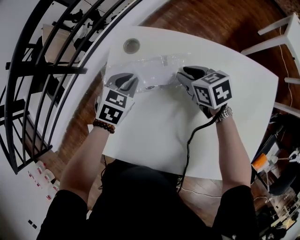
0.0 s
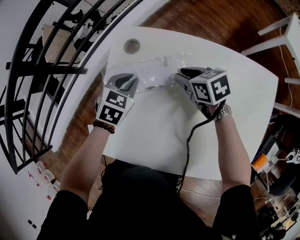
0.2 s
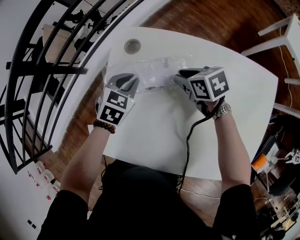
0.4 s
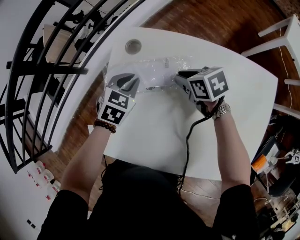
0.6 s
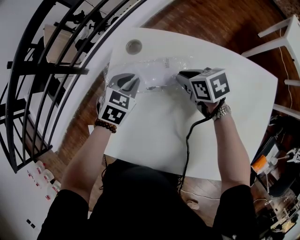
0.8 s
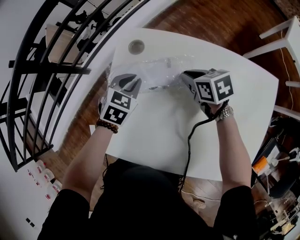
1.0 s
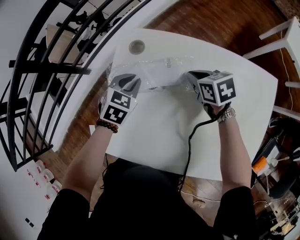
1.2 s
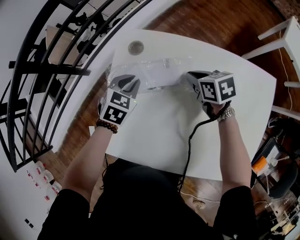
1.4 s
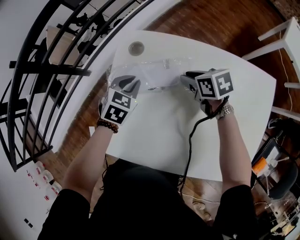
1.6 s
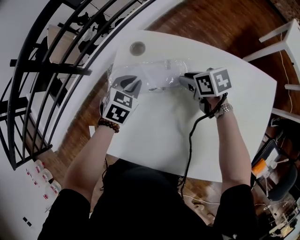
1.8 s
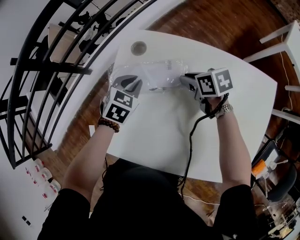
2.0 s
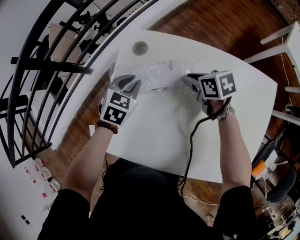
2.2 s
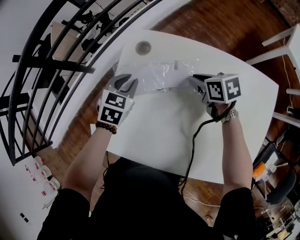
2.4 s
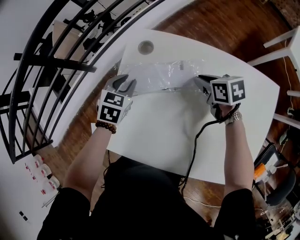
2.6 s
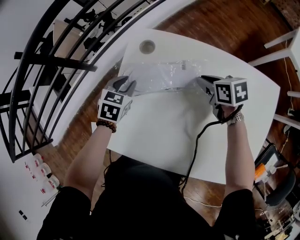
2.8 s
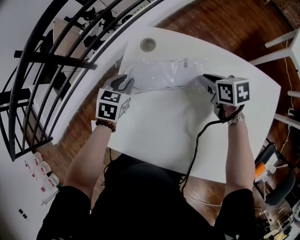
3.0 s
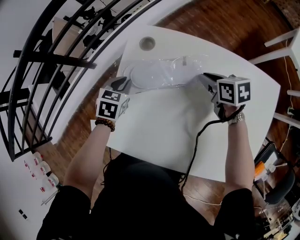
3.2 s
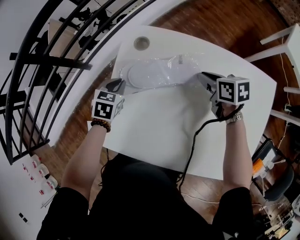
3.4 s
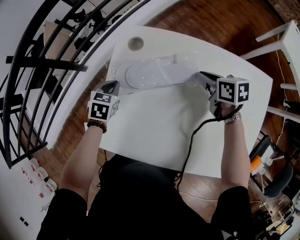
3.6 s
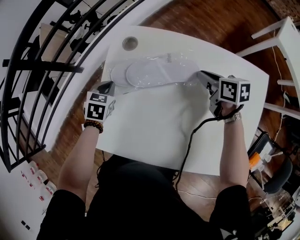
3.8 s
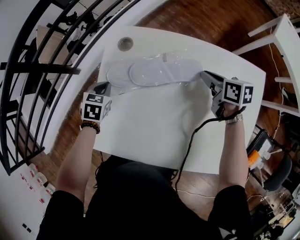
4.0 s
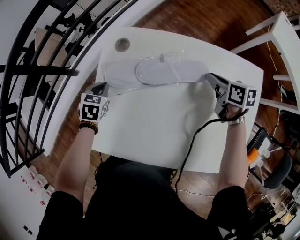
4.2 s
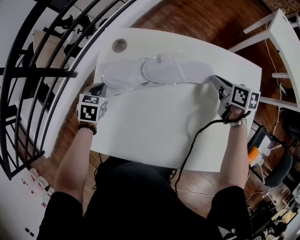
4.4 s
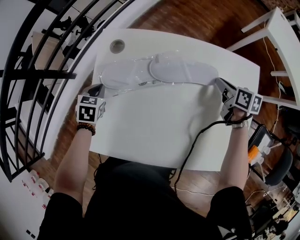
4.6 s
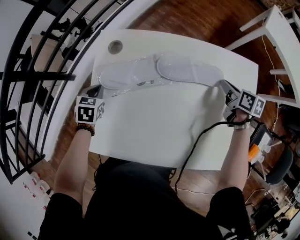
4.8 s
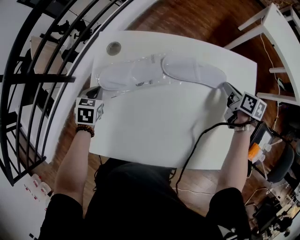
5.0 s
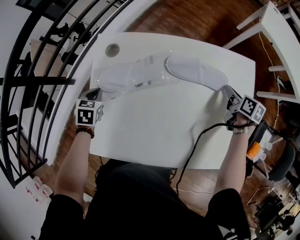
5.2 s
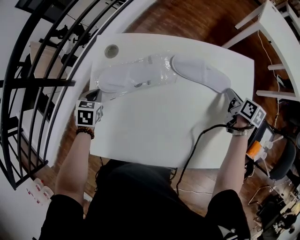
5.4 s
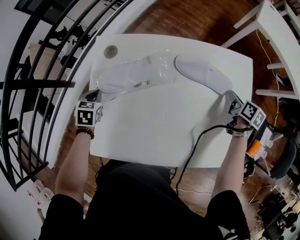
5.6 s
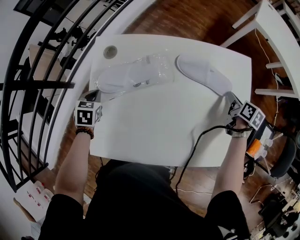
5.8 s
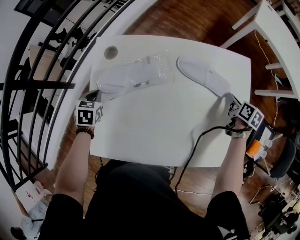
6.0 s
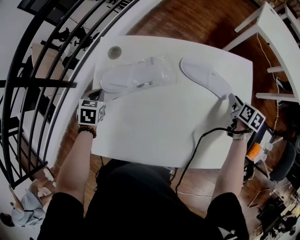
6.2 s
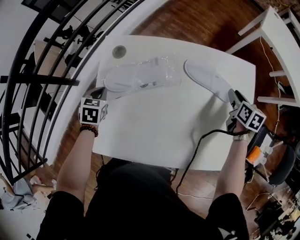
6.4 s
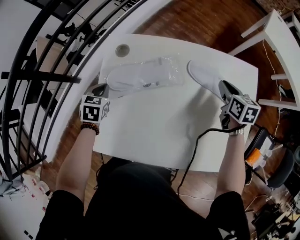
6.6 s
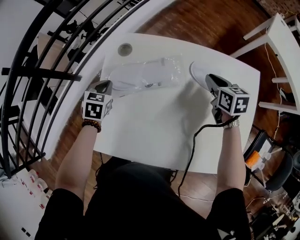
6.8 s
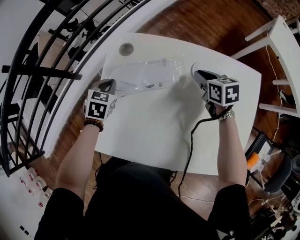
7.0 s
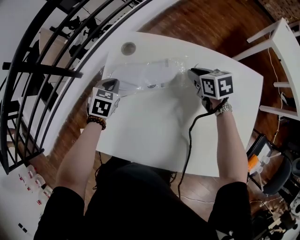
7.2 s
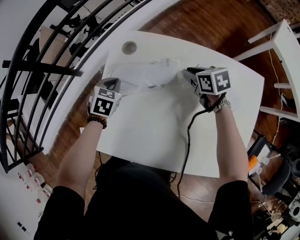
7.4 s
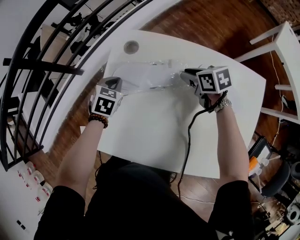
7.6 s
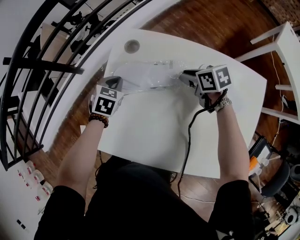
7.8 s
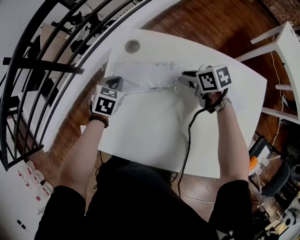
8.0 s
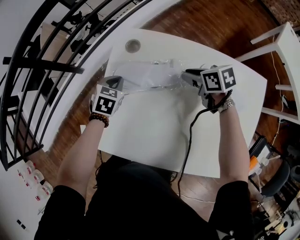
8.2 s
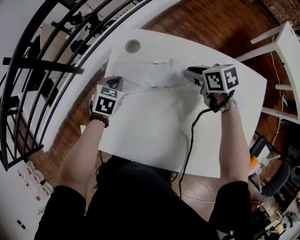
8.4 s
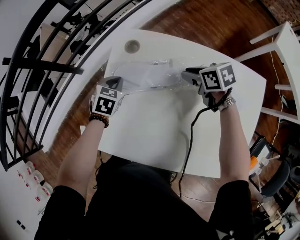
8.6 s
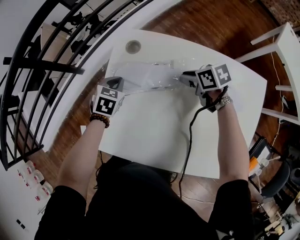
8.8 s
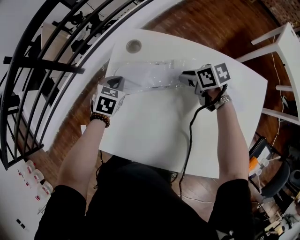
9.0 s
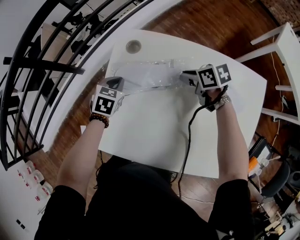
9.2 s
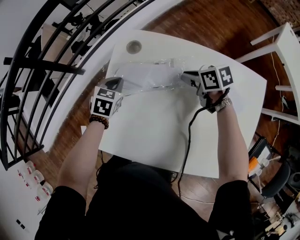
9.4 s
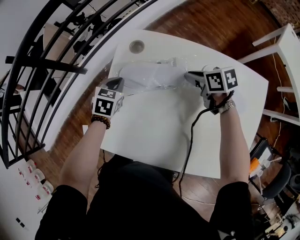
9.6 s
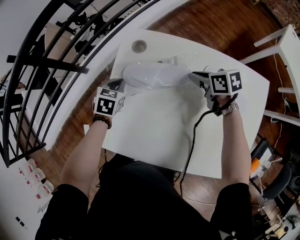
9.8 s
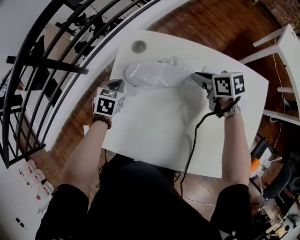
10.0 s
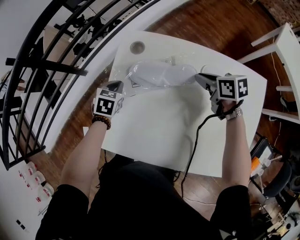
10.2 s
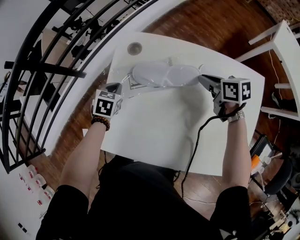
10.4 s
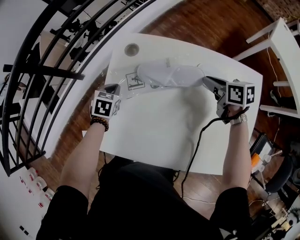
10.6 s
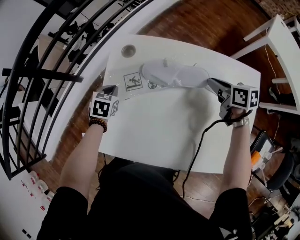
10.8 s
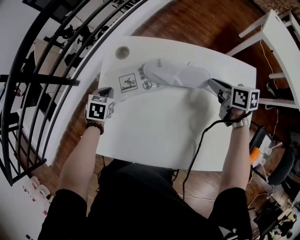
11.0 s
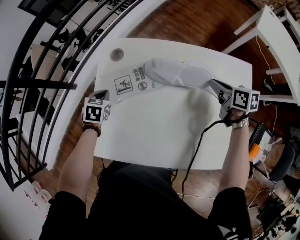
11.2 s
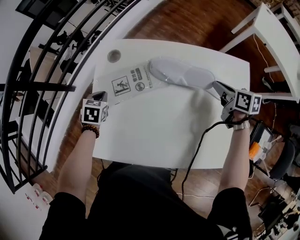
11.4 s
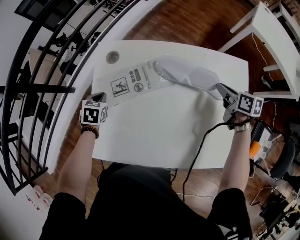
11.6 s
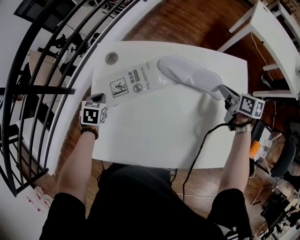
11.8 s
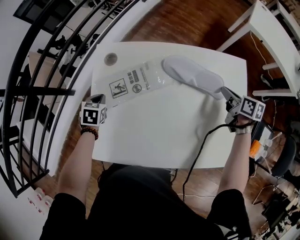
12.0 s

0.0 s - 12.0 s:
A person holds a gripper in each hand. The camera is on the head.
0.0 s - 1.6 s: The right gripper closes and opens again.
1.6 s - 3.0 s: The left gripper is displaced to the left by some 5 cm.
3.0 s - 4.4 s: The left gripper closes, while the right gripper moves to the right and backward, about 15 cm, and rotates approximately 20 degrees.
4.4 s - 6.0 s: The right gripper shifts roughly 20 cm to the right and backward, and rotates some 30 degrees.
6.0 s - 7.6 s: The right gripper ends up some 35 cm from where it was, and changes its angle by some 60 degrees.
7.6 s - 9.0 s: There are only small adjustments of the grippers.
9.0 s - 10.4 s: The right gripper is displaced to the right by roughly 5 cm.
10.4 s - 12.0 s: The right gripper is displaced to the right and backward by some 20 cm, and swivels about 30 degrees.

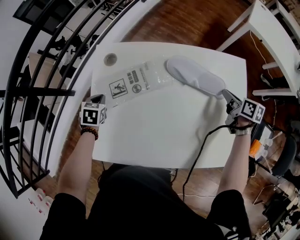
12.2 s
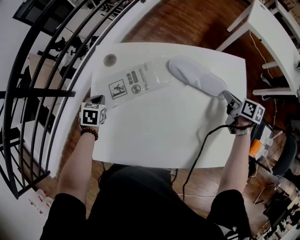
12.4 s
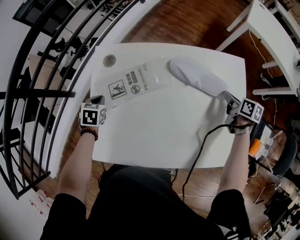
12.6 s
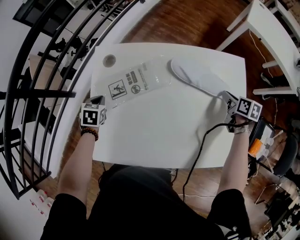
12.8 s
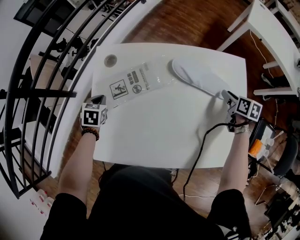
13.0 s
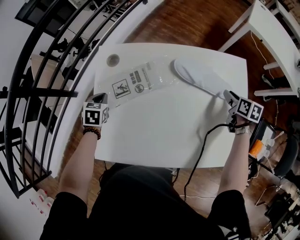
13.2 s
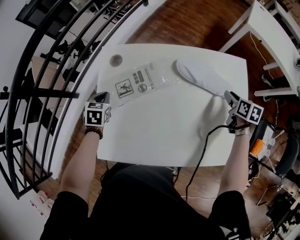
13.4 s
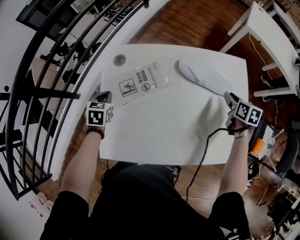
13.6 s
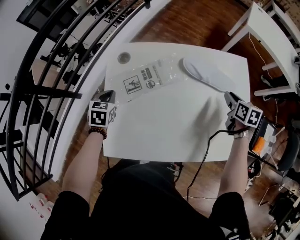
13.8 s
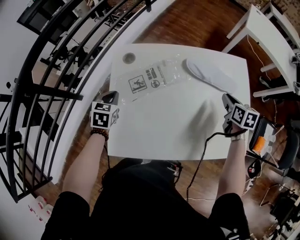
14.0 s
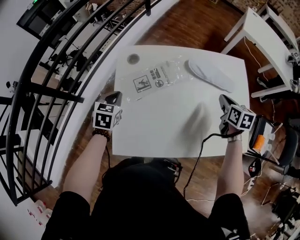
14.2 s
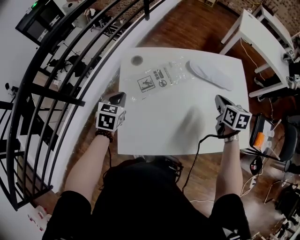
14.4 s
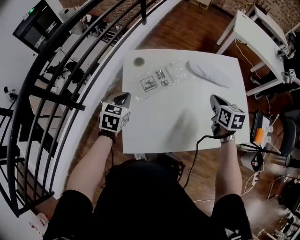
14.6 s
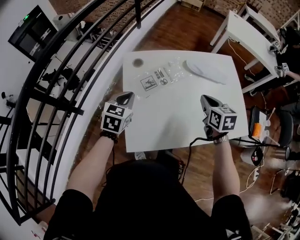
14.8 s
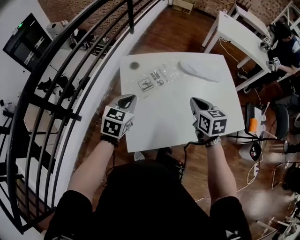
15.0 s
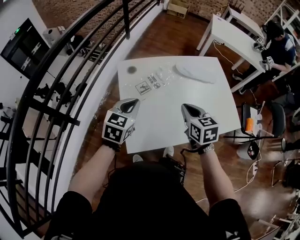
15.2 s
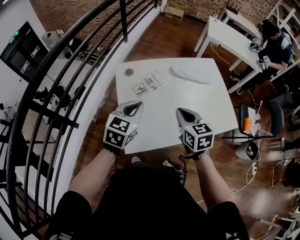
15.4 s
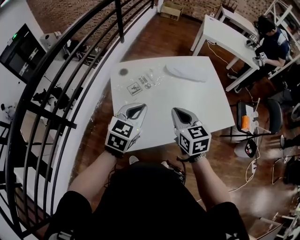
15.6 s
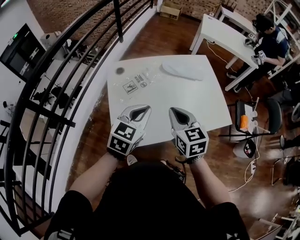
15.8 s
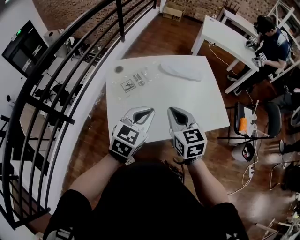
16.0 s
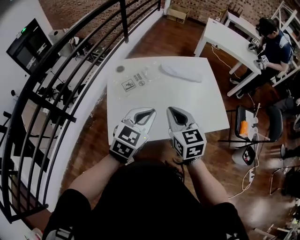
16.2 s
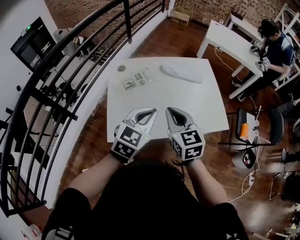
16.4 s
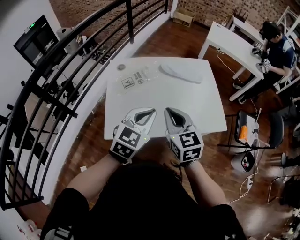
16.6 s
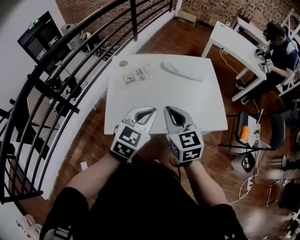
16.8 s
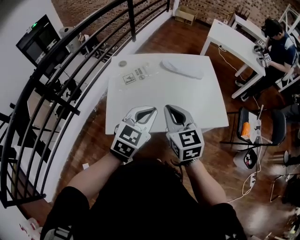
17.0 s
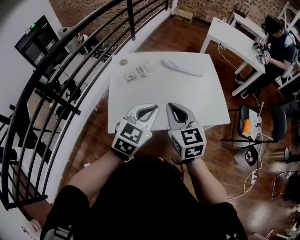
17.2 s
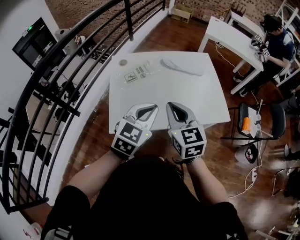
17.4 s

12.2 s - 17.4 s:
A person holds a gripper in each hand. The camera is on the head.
12.2 s - 14.0 s: The left gripper moves upward, about 5 cm. Meanwhile the right gripper shifts about 10 cm to the left and backward, and swivels some 20 degrees.
14.0 s - 15.6 s: The left gripper shifts about 25 cm upward, backward and to the right, and swivels approximately 40 degrees. The right gripper travels backward, to the left and upward by about 40 cm, and rotates some 20 degrees.
15.6 s - 17.4 s: The left gripper is displaced to the right and backward by approximately 15 cm; the right gripper moves backward and upward, some 10 cm.

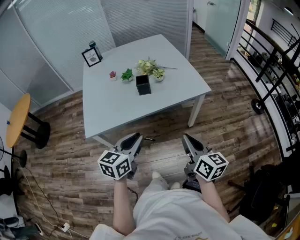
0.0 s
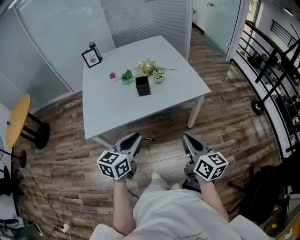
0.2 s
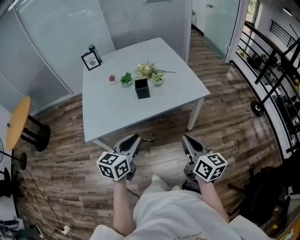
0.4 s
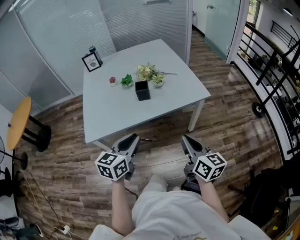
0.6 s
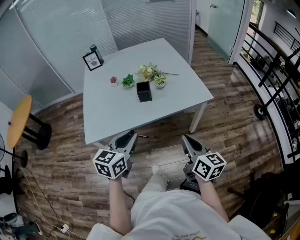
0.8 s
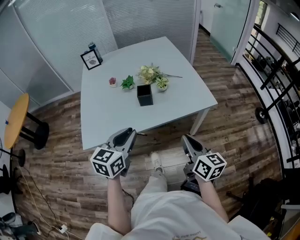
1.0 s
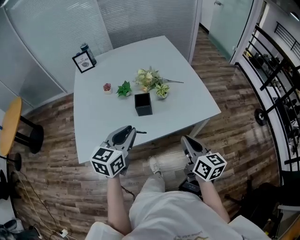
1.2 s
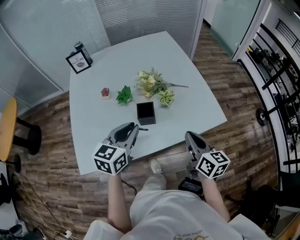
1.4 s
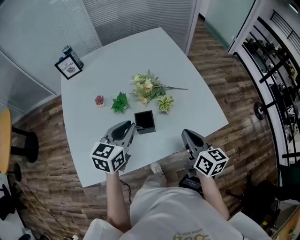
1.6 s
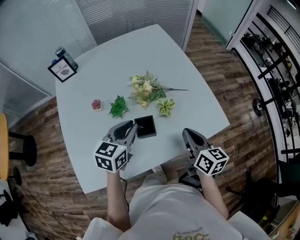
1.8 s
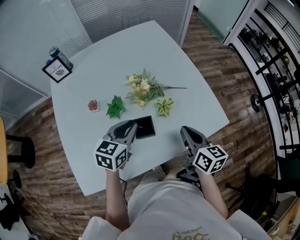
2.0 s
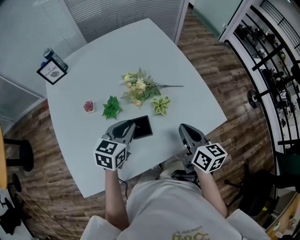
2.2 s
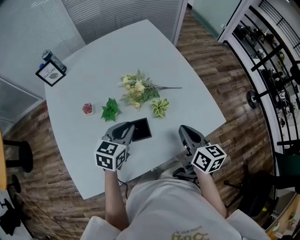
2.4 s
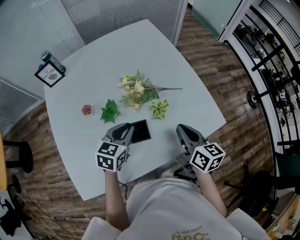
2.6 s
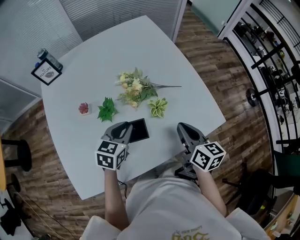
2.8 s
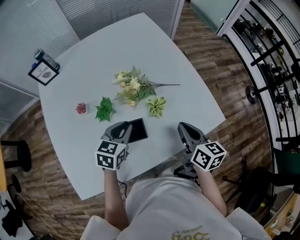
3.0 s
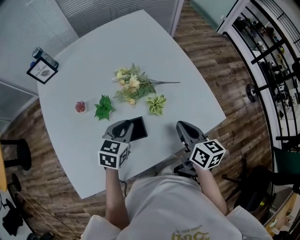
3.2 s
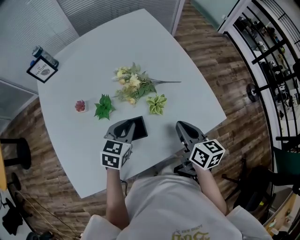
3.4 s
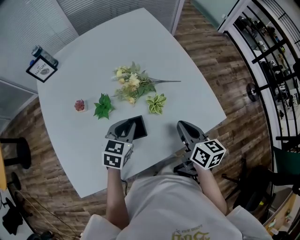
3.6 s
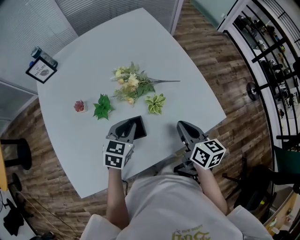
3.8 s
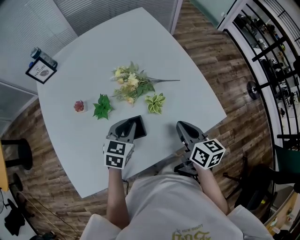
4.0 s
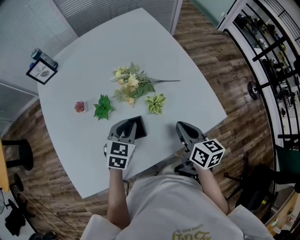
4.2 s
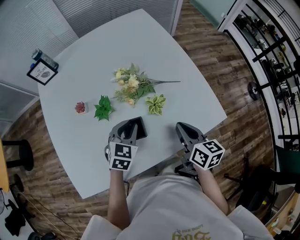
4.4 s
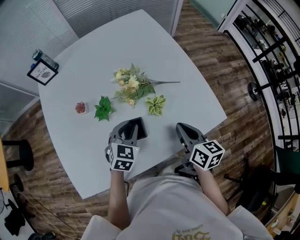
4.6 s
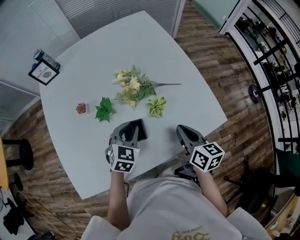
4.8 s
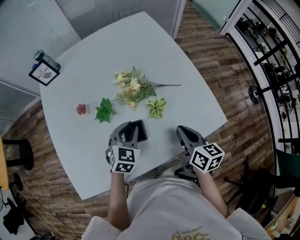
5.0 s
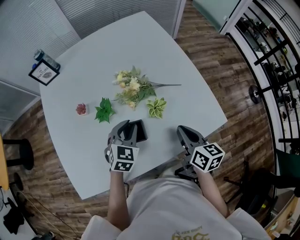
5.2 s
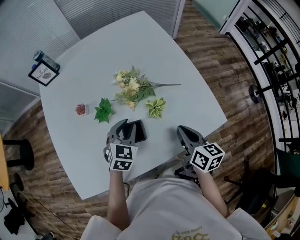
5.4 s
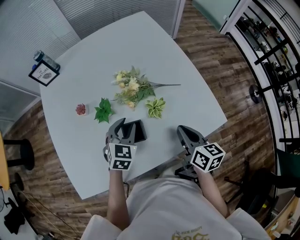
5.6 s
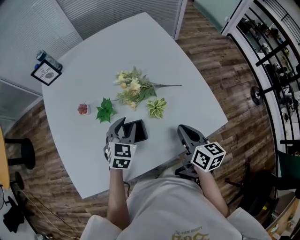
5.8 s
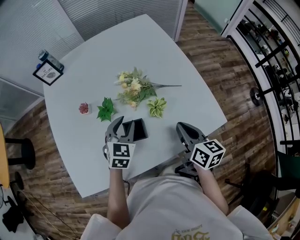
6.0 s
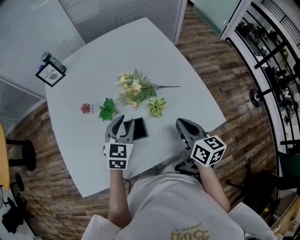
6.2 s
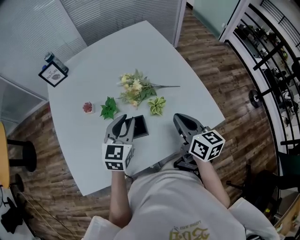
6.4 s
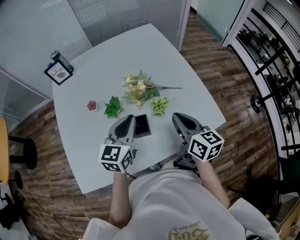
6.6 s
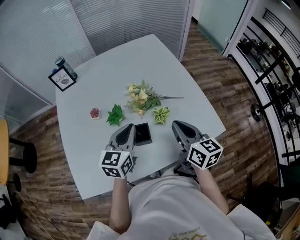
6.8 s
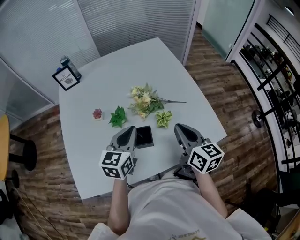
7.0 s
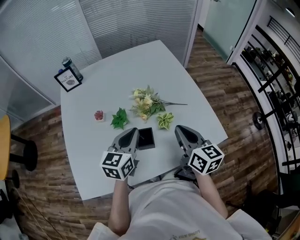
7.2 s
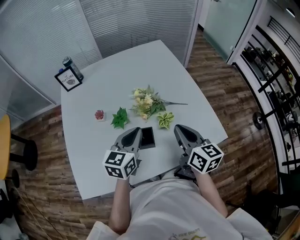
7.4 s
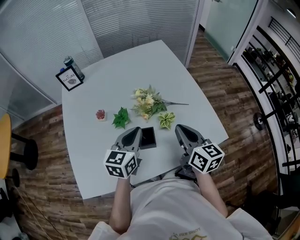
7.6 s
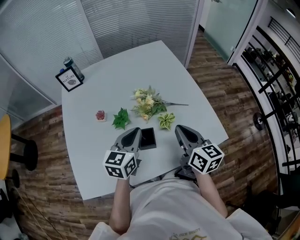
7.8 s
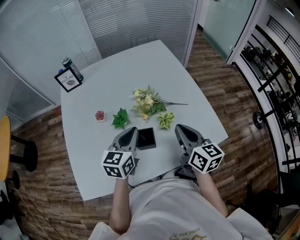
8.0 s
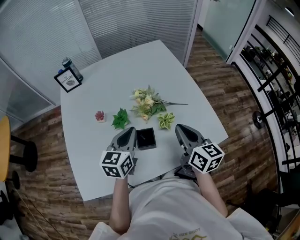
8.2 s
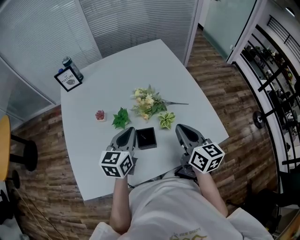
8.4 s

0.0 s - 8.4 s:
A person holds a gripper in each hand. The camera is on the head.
0.0 s - 1.4 s: The grippers both shift forward by roughly 30 cm.
1.4 s - 2.8 s: The left gripper is displaced forward and downward by some 20 cm. The right gripper goes roughly 15 cm forward.
2.8 s - 4.2 s: The grippers move only a little.
4.2 s - 5.6 s: The grippers make only small movements.
5.6 s - 7.0 s: The two grippers go about 10 cm upward. The left gripper rotates about 30 degrees, and closes.
7.0 s - 8.4 s: The grippers make only small movements.
